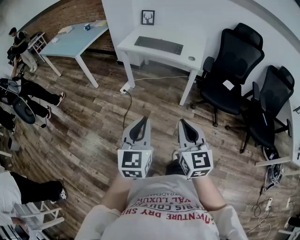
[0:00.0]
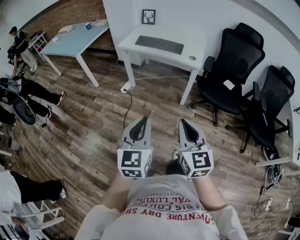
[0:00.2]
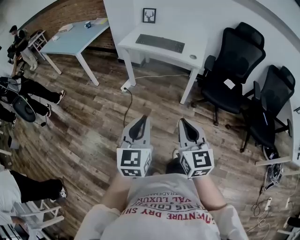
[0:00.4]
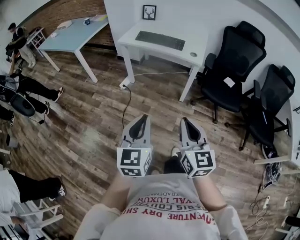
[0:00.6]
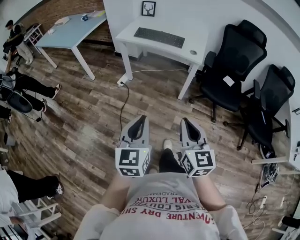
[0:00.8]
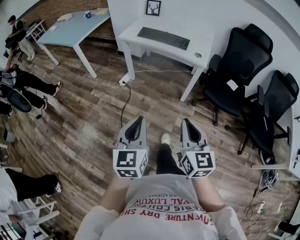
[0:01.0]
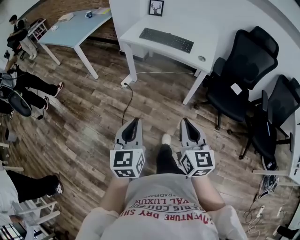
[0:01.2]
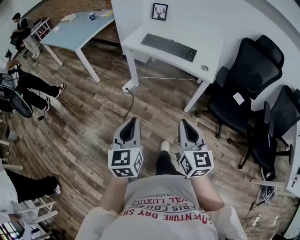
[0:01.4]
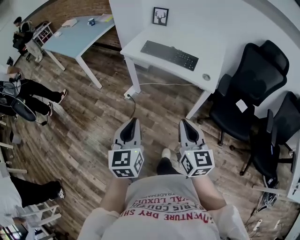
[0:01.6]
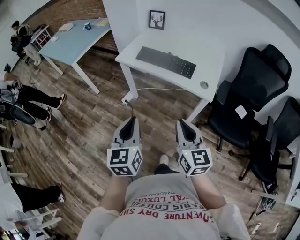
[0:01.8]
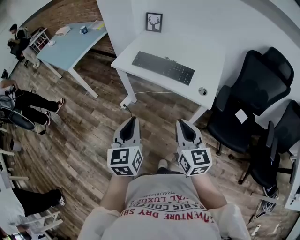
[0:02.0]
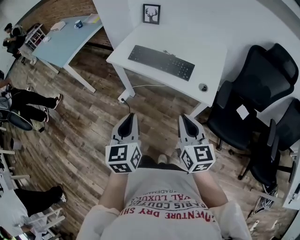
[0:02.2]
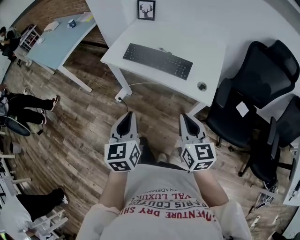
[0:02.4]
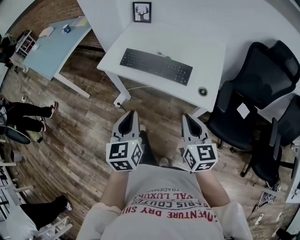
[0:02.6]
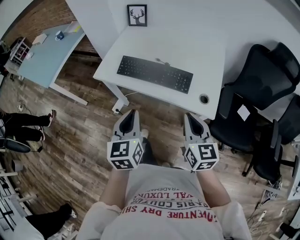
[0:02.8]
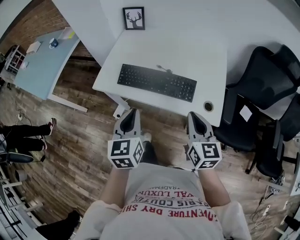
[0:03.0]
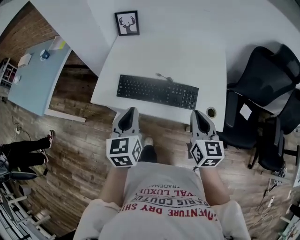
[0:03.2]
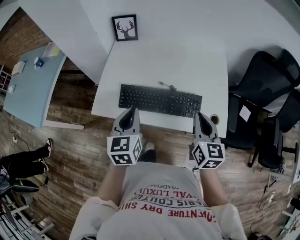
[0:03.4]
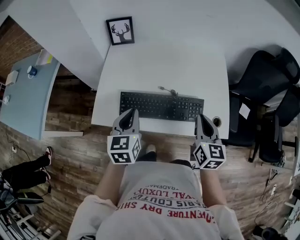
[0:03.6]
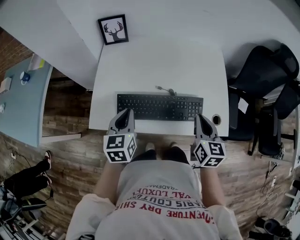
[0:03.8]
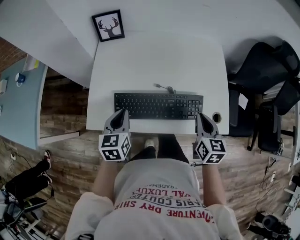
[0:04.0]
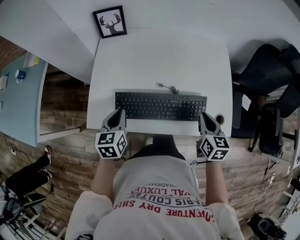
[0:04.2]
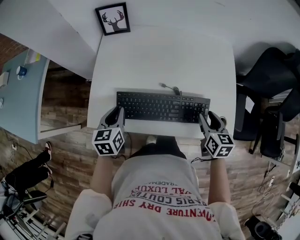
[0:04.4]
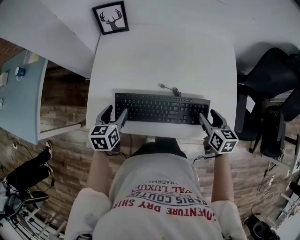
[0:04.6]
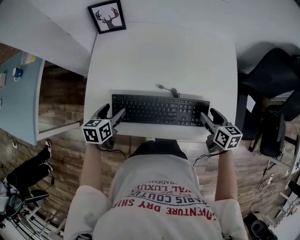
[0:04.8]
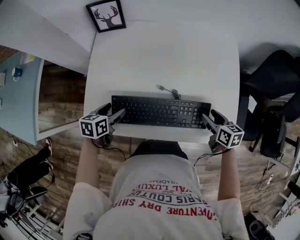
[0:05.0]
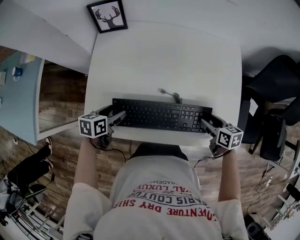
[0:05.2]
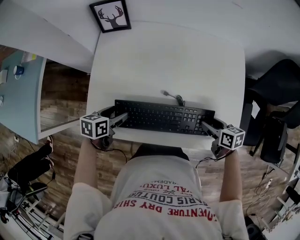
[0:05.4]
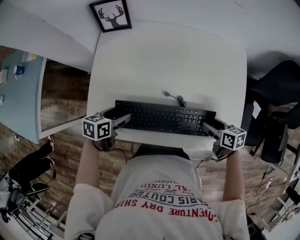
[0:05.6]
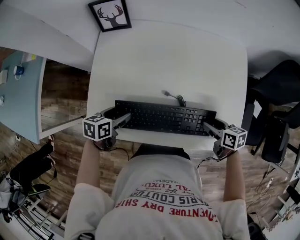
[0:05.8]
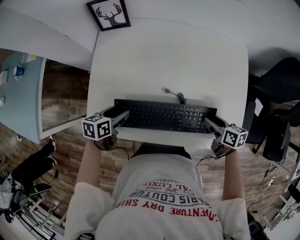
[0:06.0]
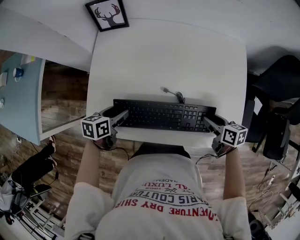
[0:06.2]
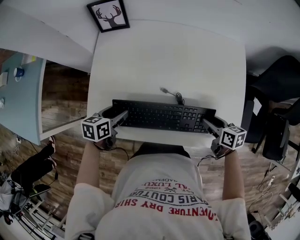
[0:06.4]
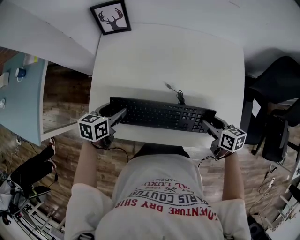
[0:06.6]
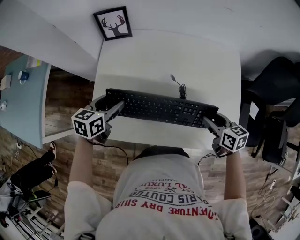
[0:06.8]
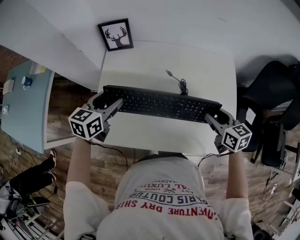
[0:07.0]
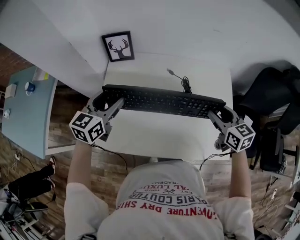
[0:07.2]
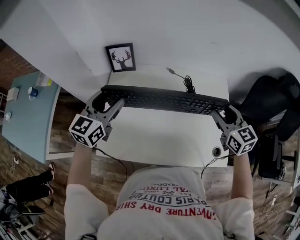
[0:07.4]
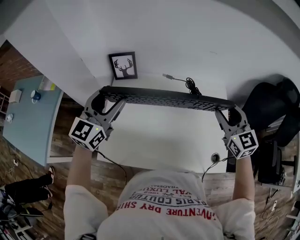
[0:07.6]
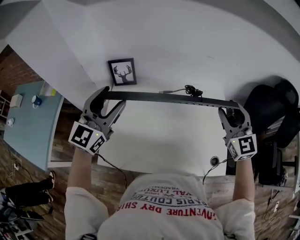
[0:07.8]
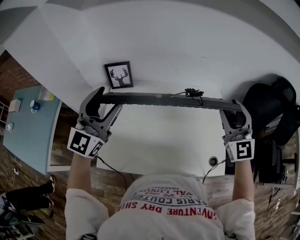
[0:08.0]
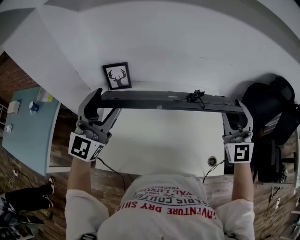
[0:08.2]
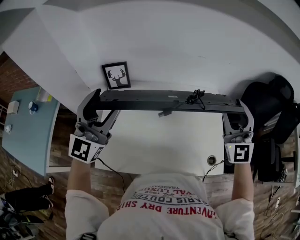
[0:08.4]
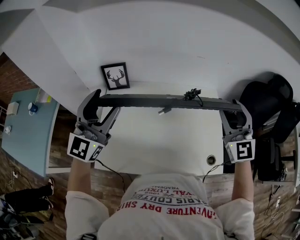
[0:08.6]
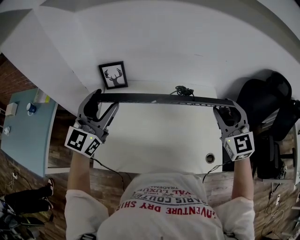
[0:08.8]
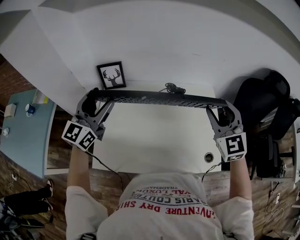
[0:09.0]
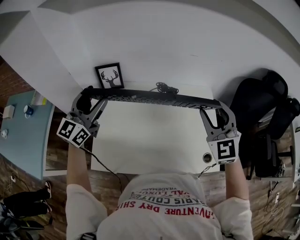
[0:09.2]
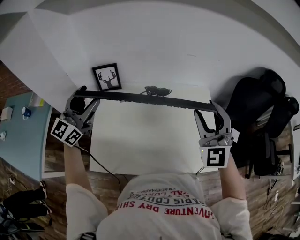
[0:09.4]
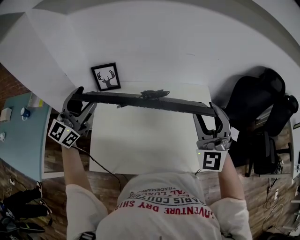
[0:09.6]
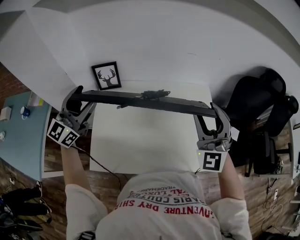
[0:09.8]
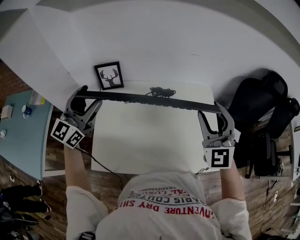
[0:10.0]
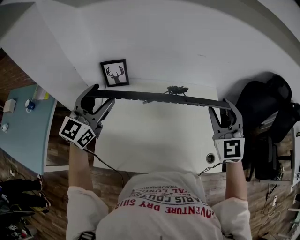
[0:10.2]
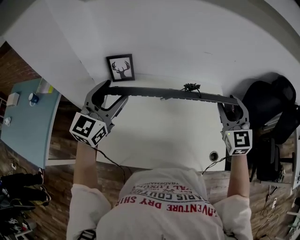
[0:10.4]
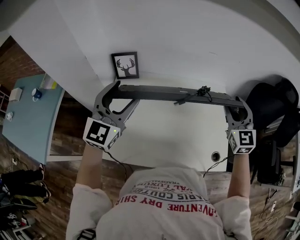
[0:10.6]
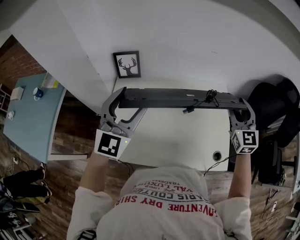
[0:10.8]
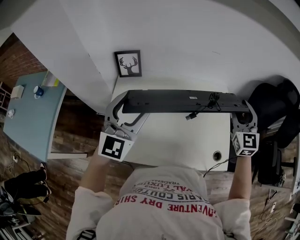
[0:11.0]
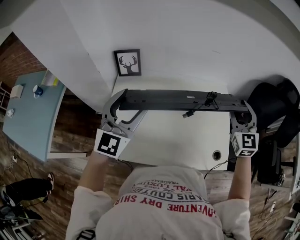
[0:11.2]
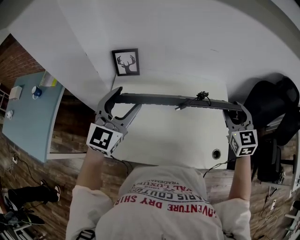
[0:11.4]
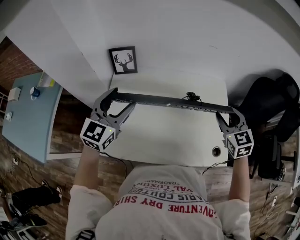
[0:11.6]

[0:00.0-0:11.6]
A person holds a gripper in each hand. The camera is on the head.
0:00.0 to 0:01.4: Both grippers travel together forward, about 15 cm.
0:01.4 to 0:02.8: The grippers both shift forward by roughly 40 cm.
0:02.8 to 0:04.4: The right gripper travels forward and downward by about 30 cm, rotates approximately 30 degrees, and opens its fingers, while the left gripper travels forward, to the left and downward by some 40 cm, and rotates approximately 30 degrees.
0:04.4 to 0:05.8: Both grippers travel together downward, roughly 10 cm. The left gripper rotates roughly 30 degrees, and opens its fingers; the right gripper changes its angle by roughly 30 degrees.
0:05.8 to 0:07.2: The grippers both shift upward by roughly 25 cm. The right gripper turns by some 40 degrees, while the left gripper changes its angle by some 40 degrees.
0:07.2 to 0:08.8: Both grippers travel together upward, roughly 15 cm. The right gripper rotates about 40 degrees; the left gripper rotates roughly 30 degrees.
0:10.2 to 0:11.6: The right gripper heads downward, covering roughly 10 cm, and rotates approximately 30 degrees; the left gripper travels downward by some 5 cm.

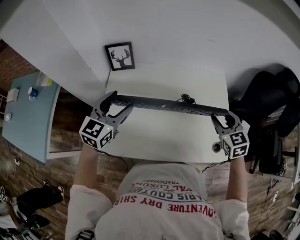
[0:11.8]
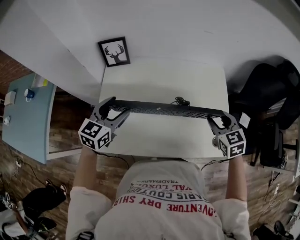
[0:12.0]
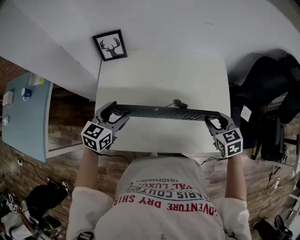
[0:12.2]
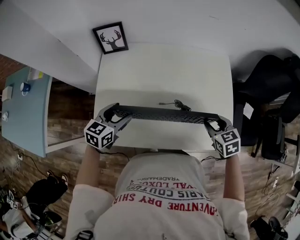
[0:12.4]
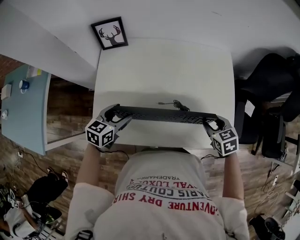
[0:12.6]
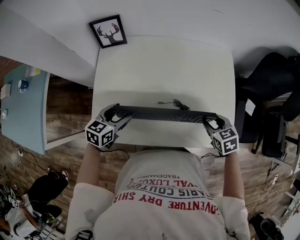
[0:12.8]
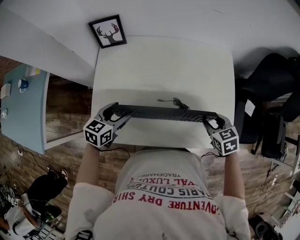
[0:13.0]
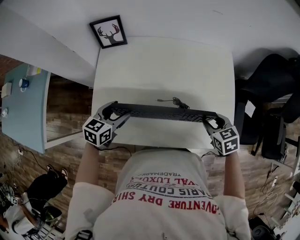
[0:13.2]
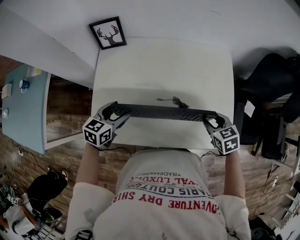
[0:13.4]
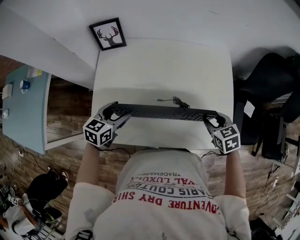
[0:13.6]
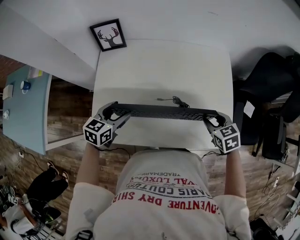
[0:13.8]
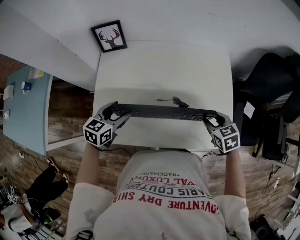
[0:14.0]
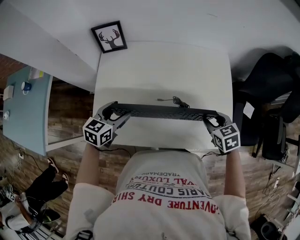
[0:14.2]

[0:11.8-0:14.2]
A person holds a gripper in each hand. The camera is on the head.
0:11.8 to 0:13.0: The two grippers go some 15 cm downward. The left gripper changes its angle by about 30 degrees. The right gripper changes its angle by roughly 30 degrees.
0:13.0 to 0:14.2: The grippers stay close to where they were, moving slightly.

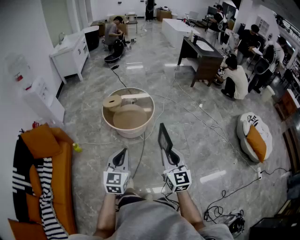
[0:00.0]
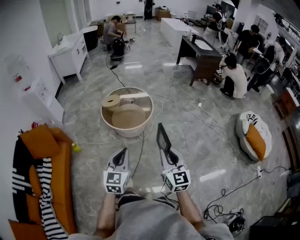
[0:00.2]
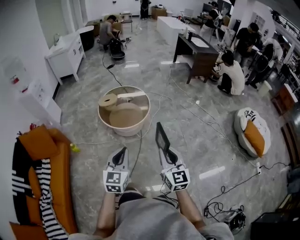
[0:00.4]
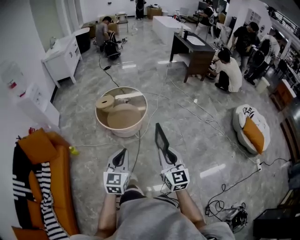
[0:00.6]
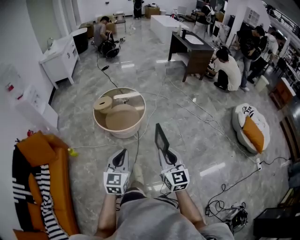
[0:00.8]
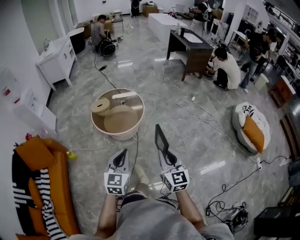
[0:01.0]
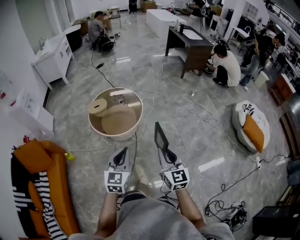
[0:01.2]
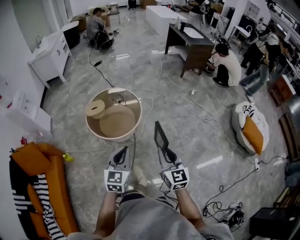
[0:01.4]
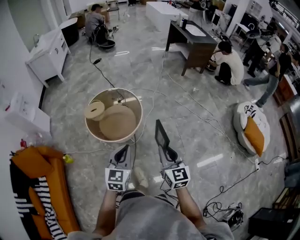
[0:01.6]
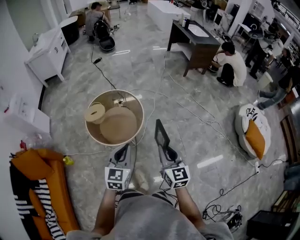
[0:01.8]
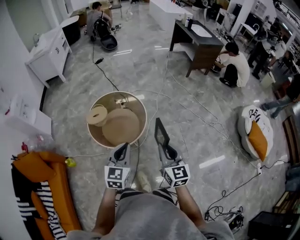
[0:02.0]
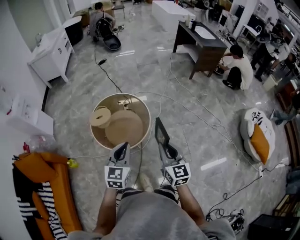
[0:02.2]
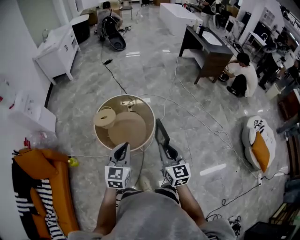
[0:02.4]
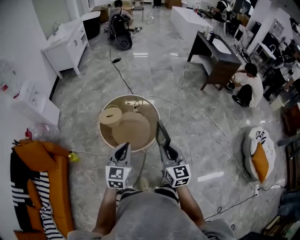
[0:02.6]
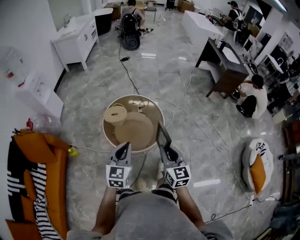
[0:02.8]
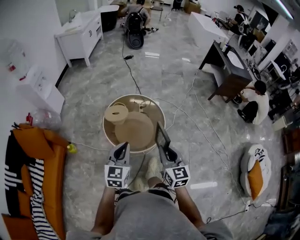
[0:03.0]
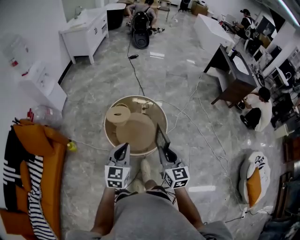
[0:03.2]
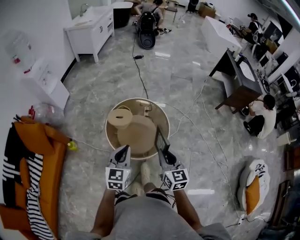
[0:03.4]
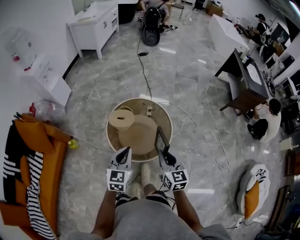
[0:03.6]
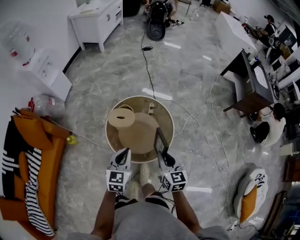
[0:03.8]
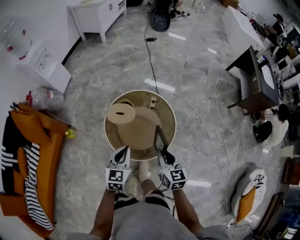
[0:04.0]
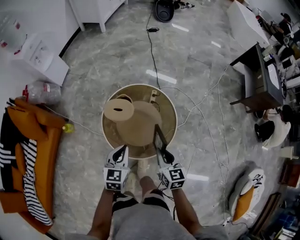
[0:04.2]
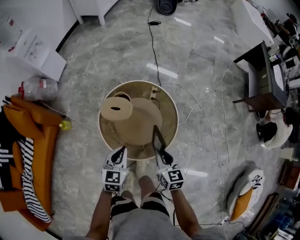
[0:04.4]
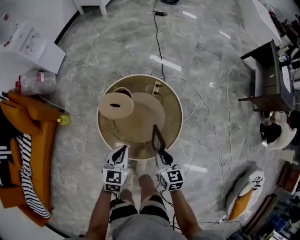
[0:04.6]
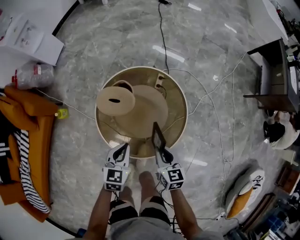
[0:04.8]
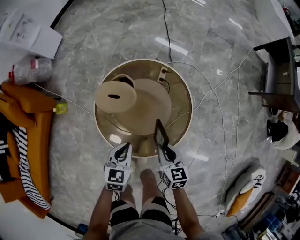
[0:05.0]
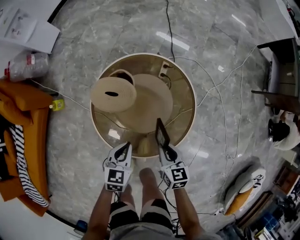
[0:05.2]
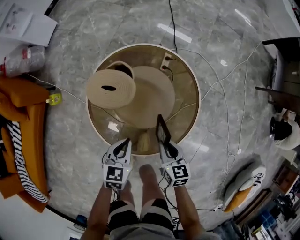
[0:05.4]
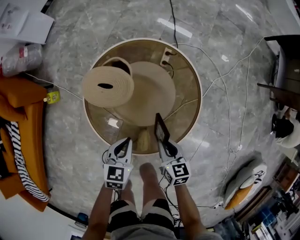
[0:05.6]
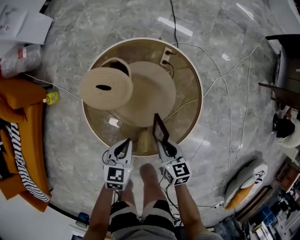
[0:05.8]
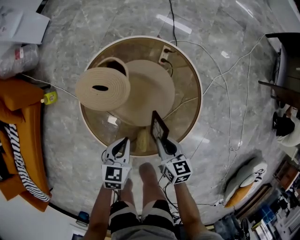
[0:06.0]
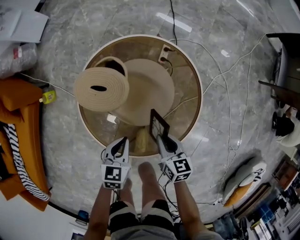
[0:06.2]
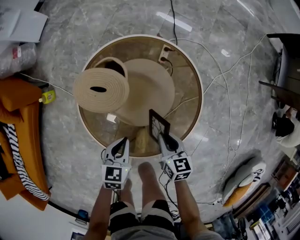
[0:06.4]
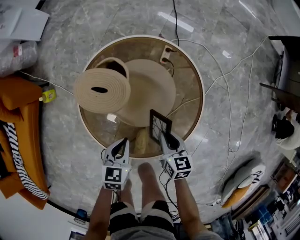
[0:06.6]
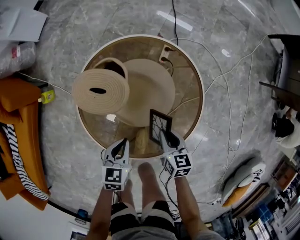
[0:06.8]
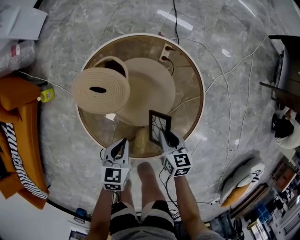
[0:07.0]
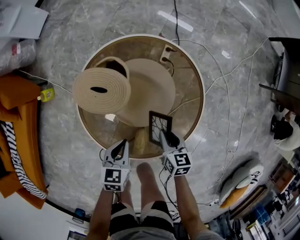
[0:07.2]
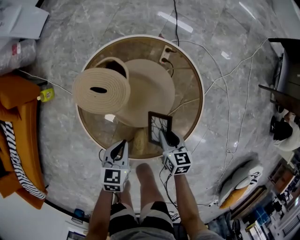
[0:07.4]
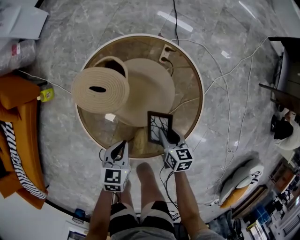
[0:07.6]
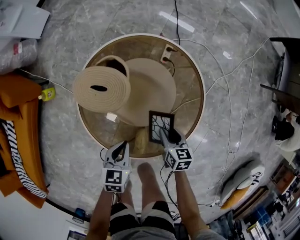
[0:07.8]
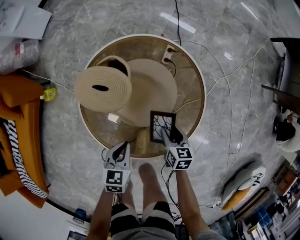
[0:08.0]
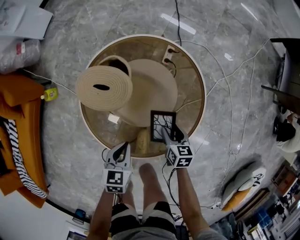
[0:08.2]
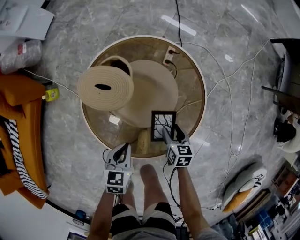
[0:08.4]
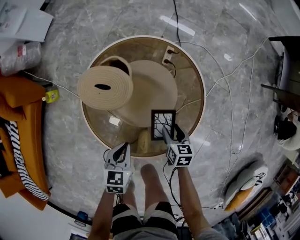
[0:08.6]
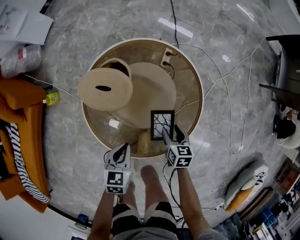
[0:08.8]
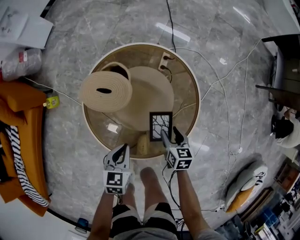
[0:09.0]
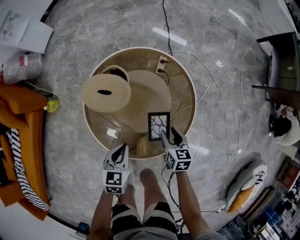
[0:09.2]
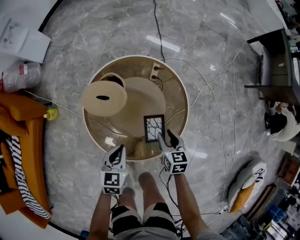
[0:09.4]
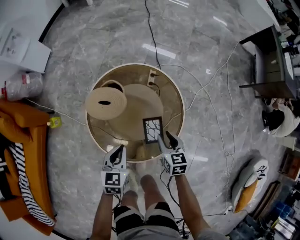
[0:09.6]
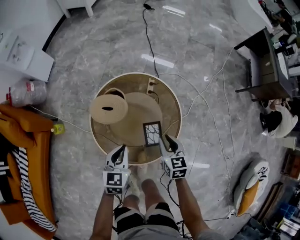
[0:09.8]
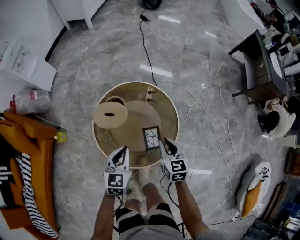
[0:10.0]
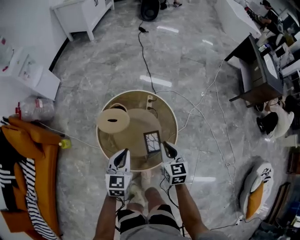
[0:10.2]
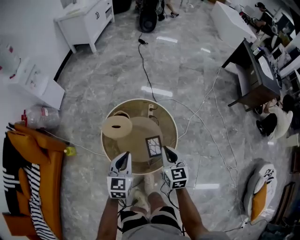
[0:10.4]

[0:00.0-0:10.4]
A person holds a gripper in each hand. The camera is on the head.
0:00.0 to 0:01.4: The grippers both shift forward and to the right by about 20 cm.
0:01.4 to 0:03.0: Both grippers travel together forward and to the left, roughly 30 cm.
0:03.0 to 0:04.4: The grippers both shift forward and downward by some 35 cm. The right gripper changes its angle by some 30 degrees. The left gripper rotates some 20 degrees.
0:04.4 to 0:06.0: Both grippers travel together downward, approximately 30 cm.
0:06.0 to 0:07.4: The right gripper moves downward, some 5 cm.
0:07.4 to 0:09.0: The right gripper opens up.
0:09.0 to 0:10.4: Both grippers move upward, roughly 35 cm. The right gripper changes its angle by some 30 degrees, and closes up, while the left gripper swivels some 30 degrees.
